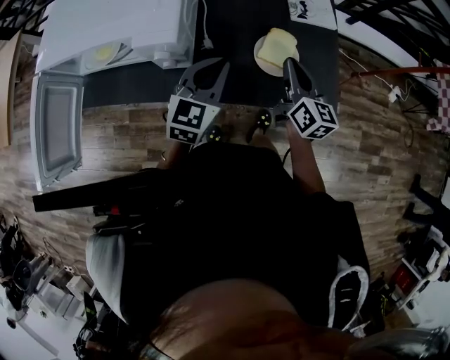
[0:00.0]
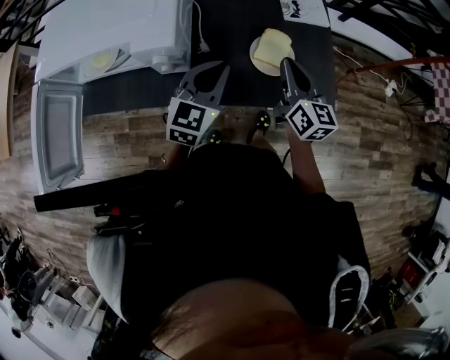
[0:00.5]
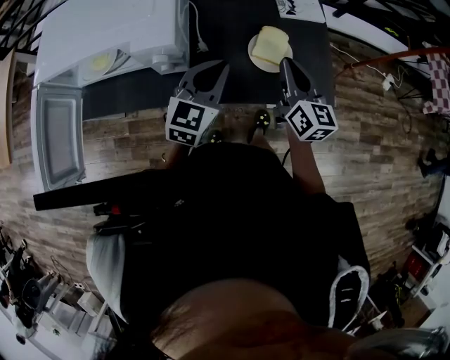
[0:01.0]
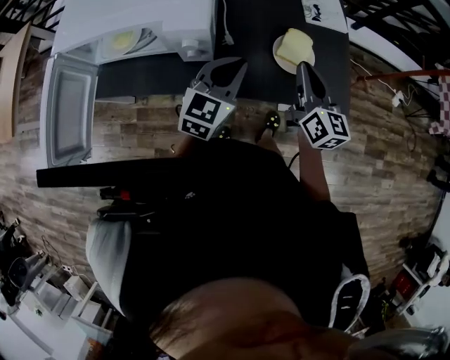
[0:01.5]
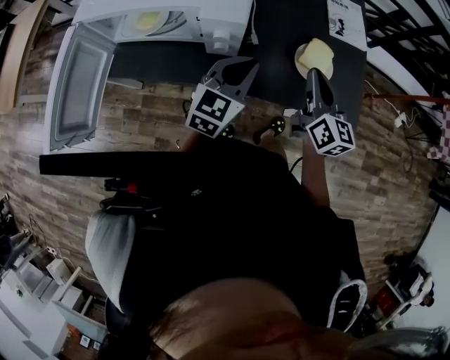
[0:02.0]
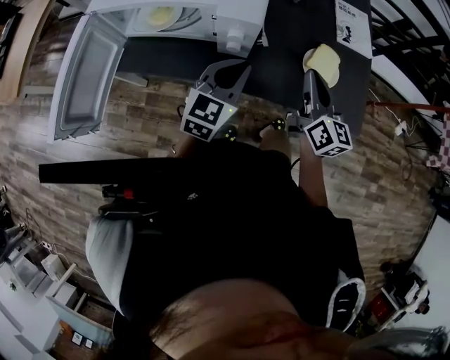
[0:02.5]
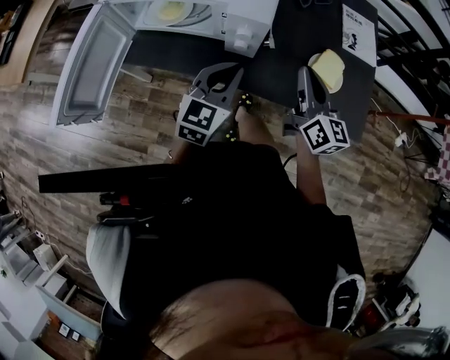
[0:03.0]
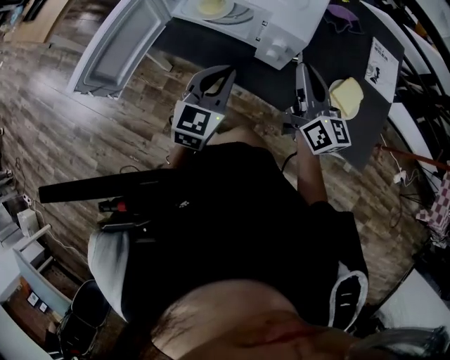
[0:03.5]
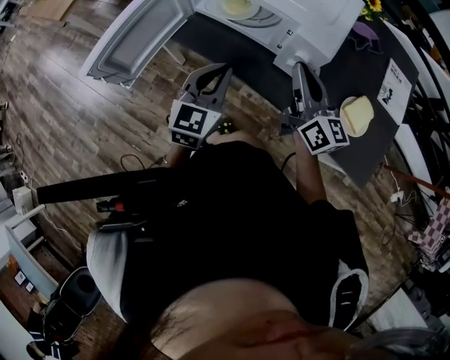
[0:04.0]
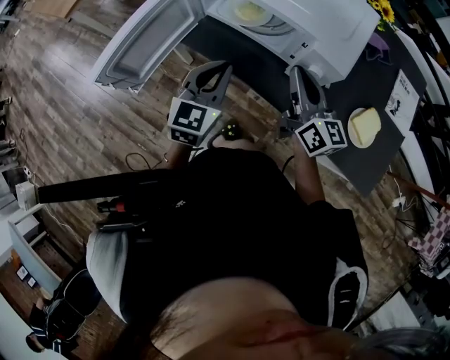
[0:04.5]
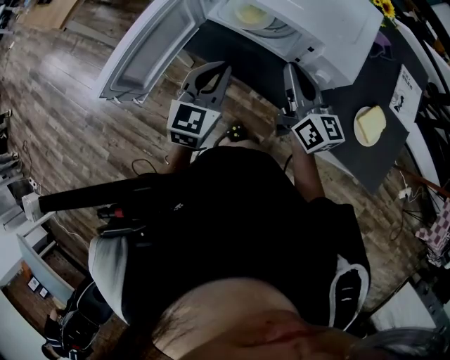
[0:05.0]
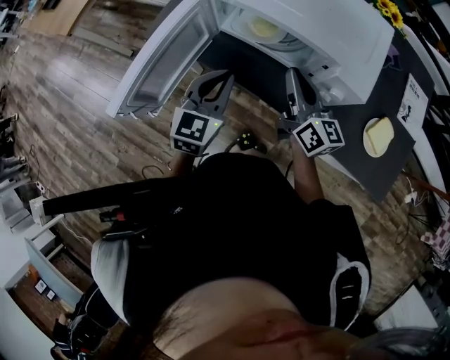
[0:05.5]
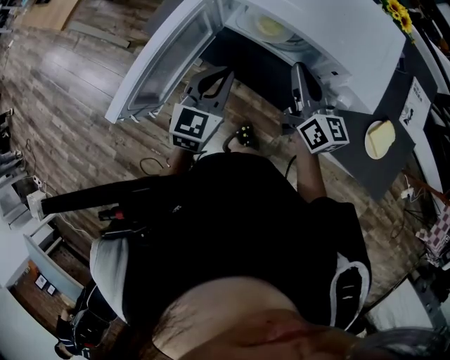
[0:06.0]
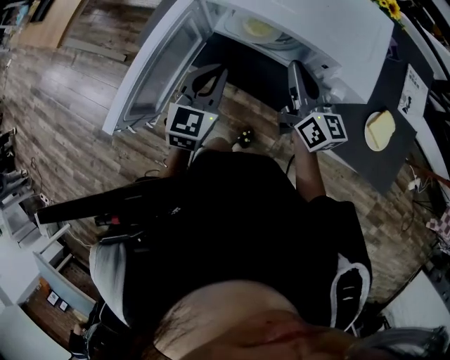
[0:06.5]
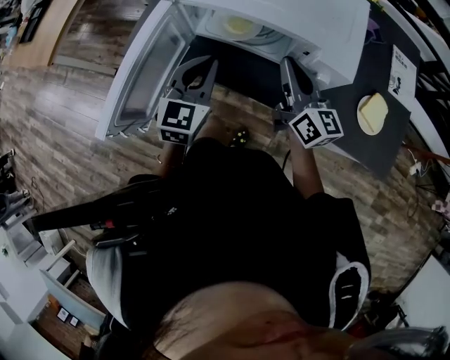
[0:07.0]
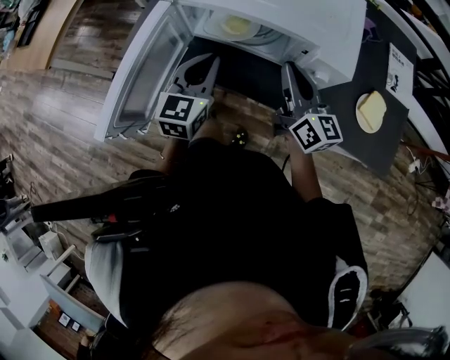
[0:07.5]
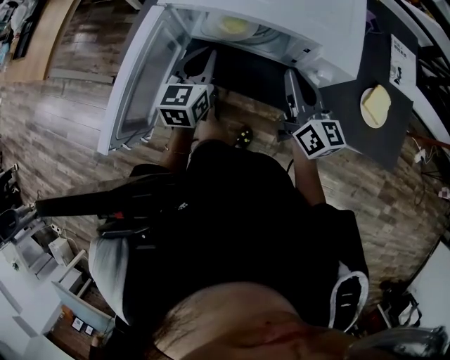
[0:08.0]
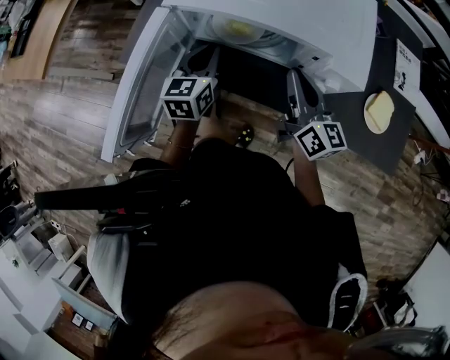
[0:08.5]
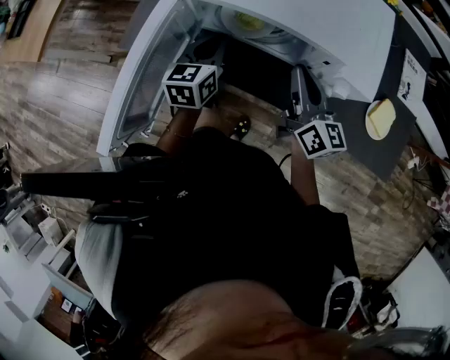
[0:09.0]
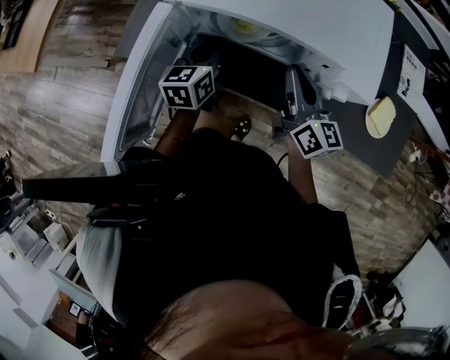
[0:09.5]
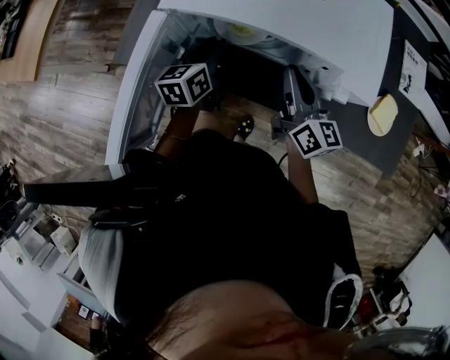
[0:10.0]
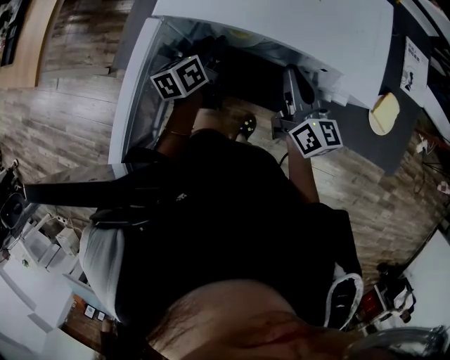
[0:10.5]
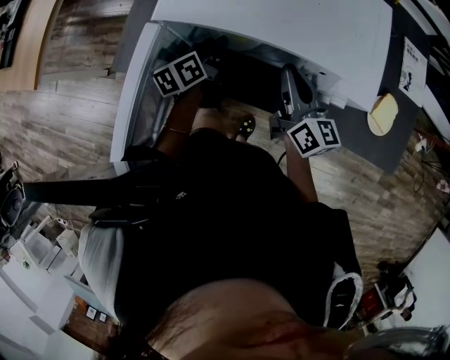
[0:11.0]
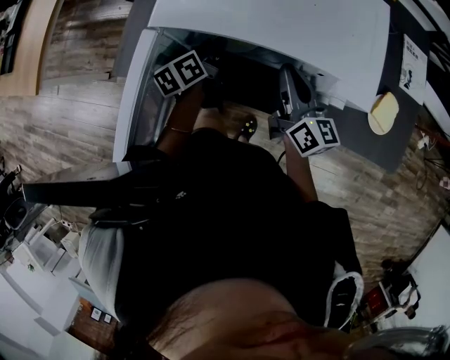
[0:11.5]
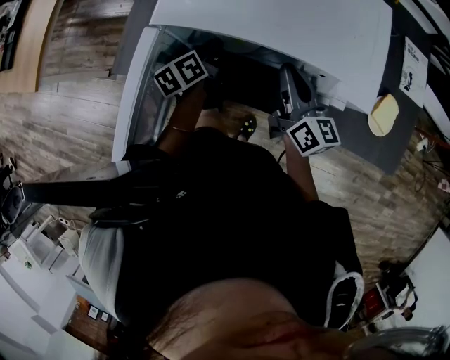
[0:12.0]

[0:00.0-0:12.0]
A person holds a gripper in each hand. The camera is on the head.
0:00.0 to 0:02.0: The right gripper heads to the left and backward, covering some 10 cm. Meanwhile the left gripper is displaced to the left by some 5 cm.
0:02.0 to 0:04.0: The right gripper ends up approximately 25 cm from where it was, and swivels some 30 degrees. The left gripper ends up about 25 cm from where it was, and changes its angle by some 30 degrees.
0:04.0 to 0:06.0: Both grippers move to the left and forward, approximately 15 cm.
0:06.0 to 0:08.0: The left gripper travels forward by about 5 cm. Meanwhile the right gripper heads to the right, covering about 5 cm.
0:08.0 to 0:10.0: The left gripper travels downward and forward by some 10 cm, and changes its angle by roughly 20 degrees. Meanwhile the right gripper moves roughly 5 cm.
0:10.0 to 0:12.0: The left gripper shifts by about 5 cm, and changes its angle by about 20 degrees.

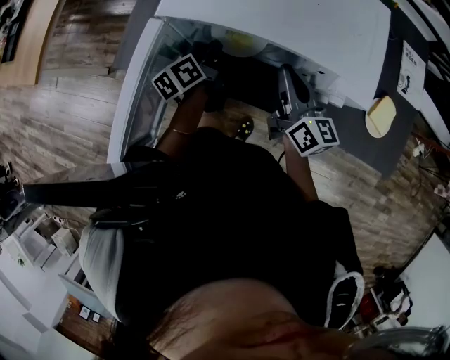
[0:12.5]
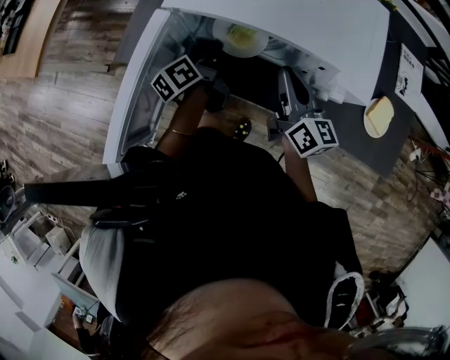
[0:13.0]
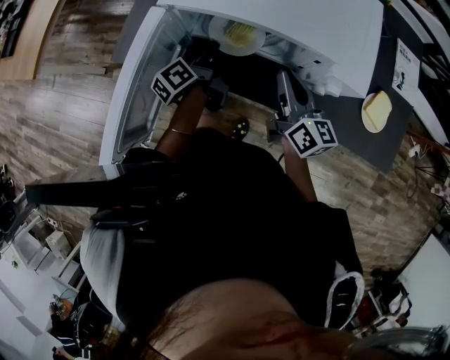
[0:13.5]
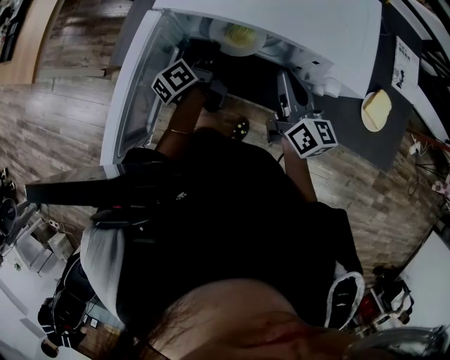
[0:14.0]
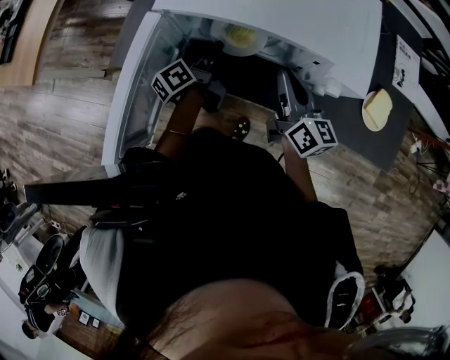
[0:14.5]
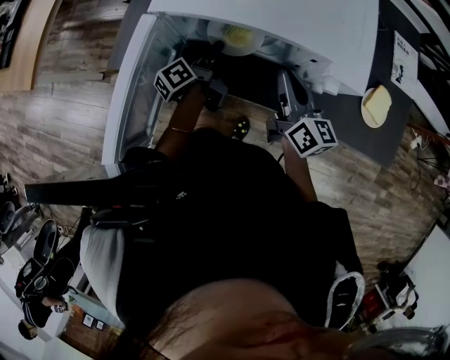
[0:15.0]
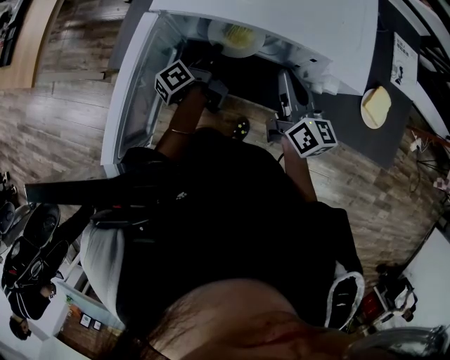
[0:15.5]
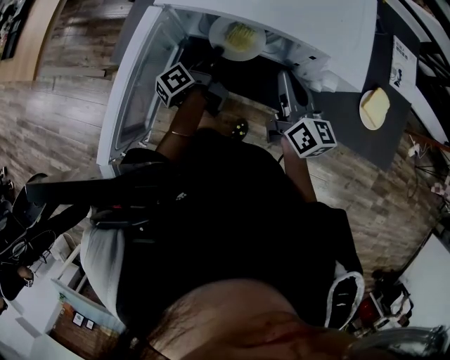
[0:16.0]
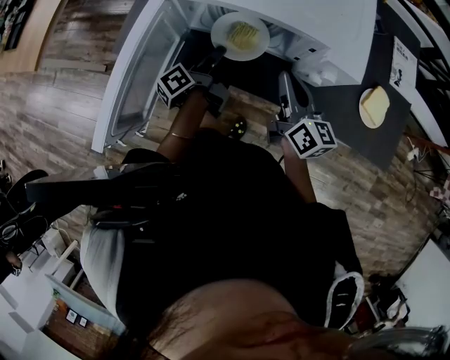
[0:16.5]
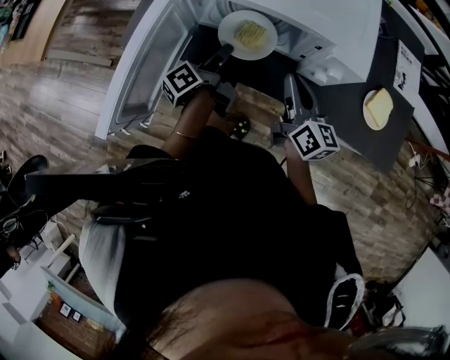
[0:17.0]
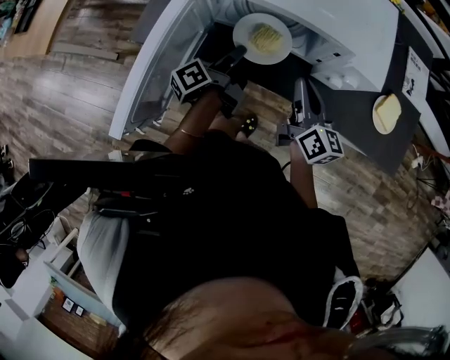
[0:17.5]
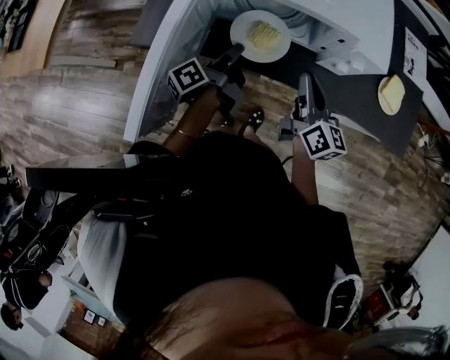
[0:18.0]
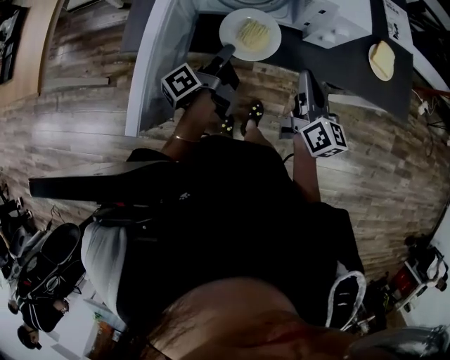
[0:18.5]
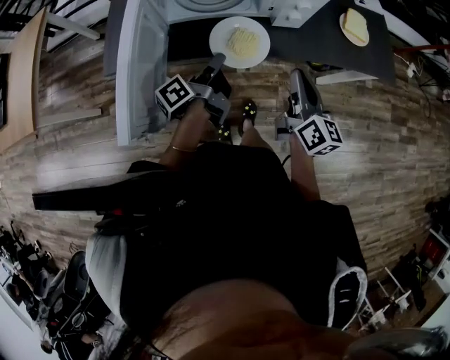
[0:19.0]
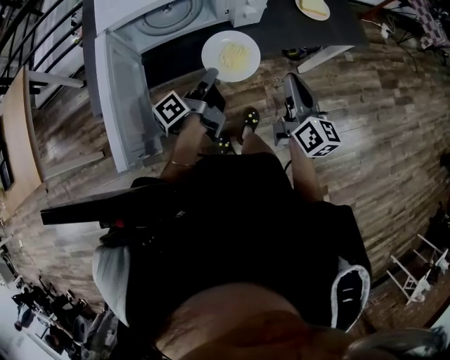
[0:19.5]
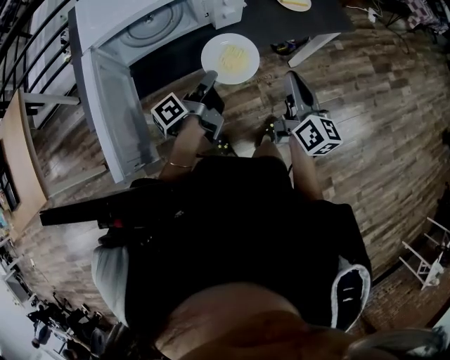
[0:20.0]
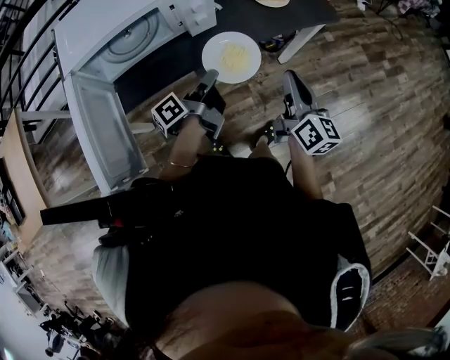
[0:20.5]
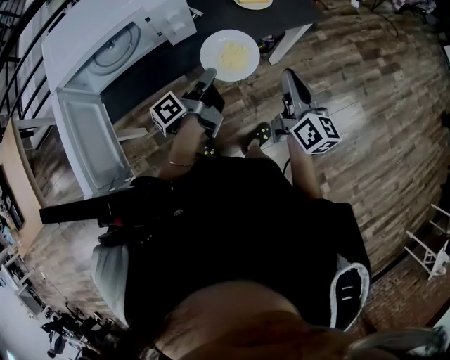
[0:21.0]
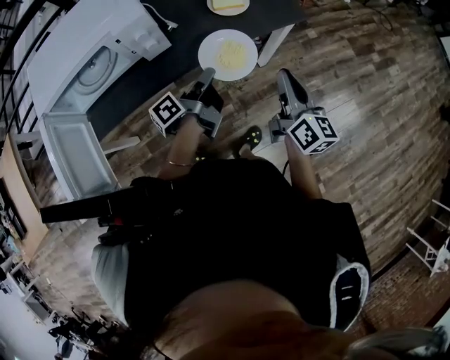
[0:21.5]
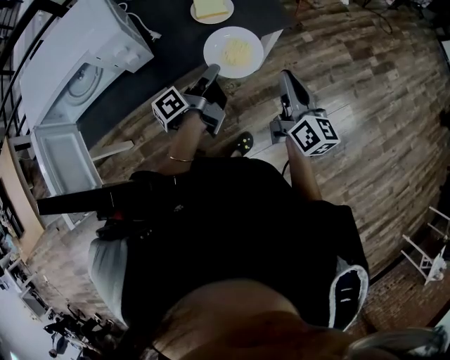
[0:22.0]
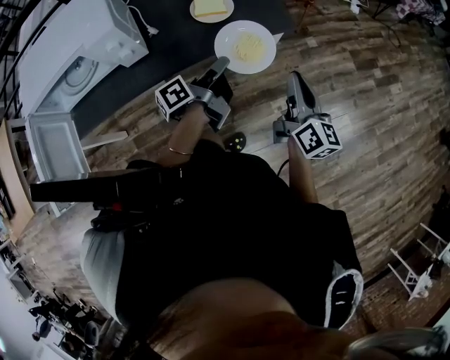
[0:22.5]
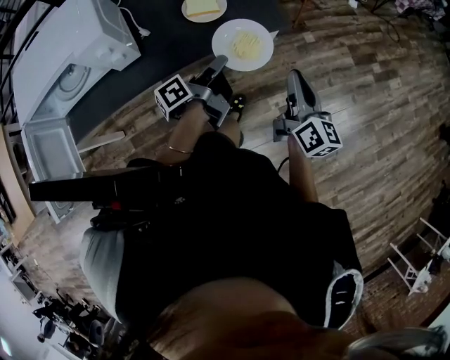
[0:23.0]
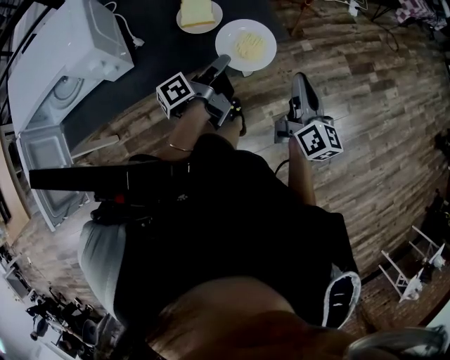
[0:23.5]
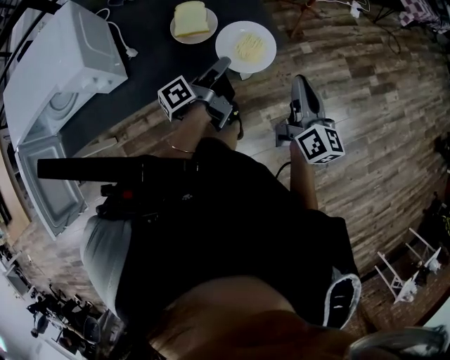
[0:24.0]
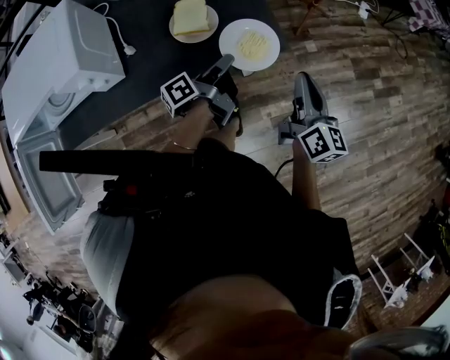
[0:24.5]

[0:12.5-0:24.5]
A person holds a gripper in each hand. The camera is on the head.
0:12.5 to 0:14.5: The grippers make only small movements.
0:14.5 to 0:16.5: The left gripper moves backward, about 5 cm, and closes.
0:16.5 to 0:18.5: The two grippers go approximately 10 cm backward.
0:18.5 to 0:20.5: The left gripper shifts by about 20 cm, and rotates some 30 degrees. Meanwhile the right gripper shifts by approximately 25 cm, and changes its angle by some 30 degrees.
0:20.5 to 0:22.5: The grippers both shift to the right and forward by approximately 30 cm.
0:22.5 to 0:24.5: The grippers both shift forward by roughly 10 cm.

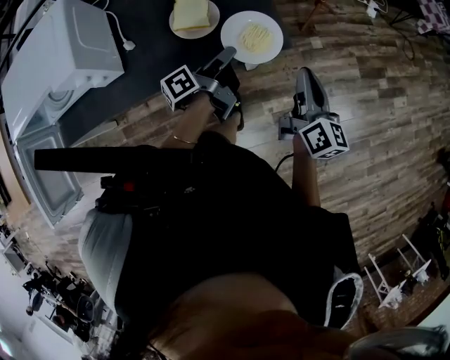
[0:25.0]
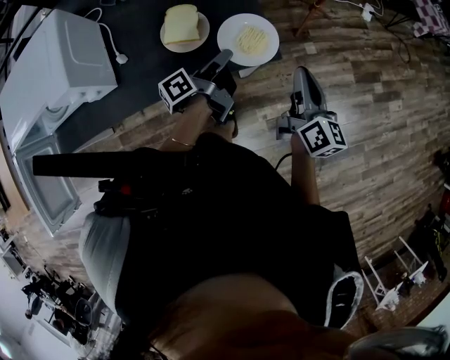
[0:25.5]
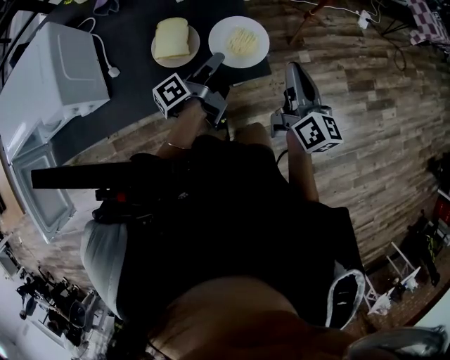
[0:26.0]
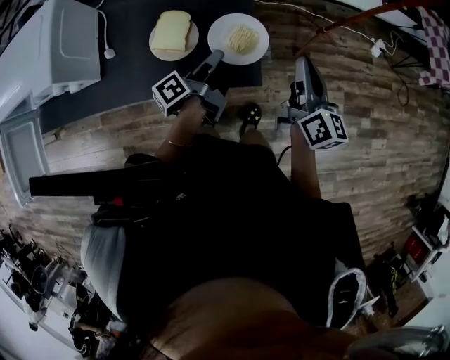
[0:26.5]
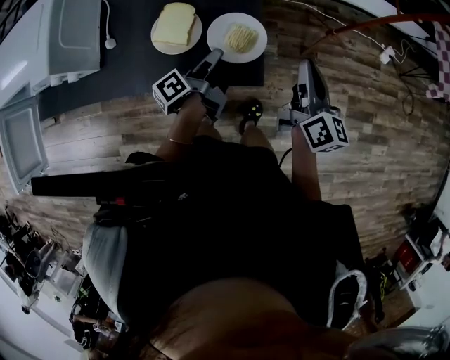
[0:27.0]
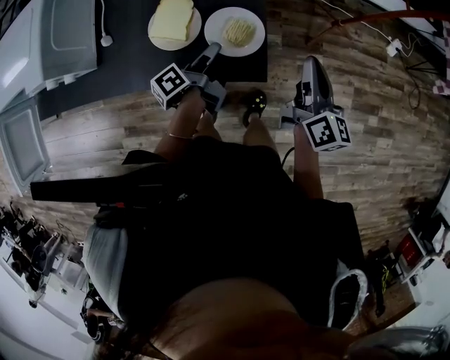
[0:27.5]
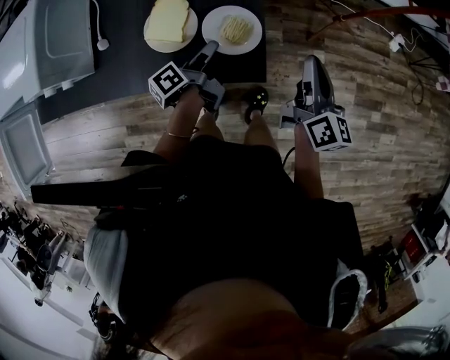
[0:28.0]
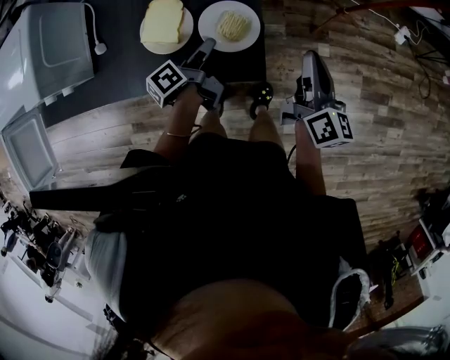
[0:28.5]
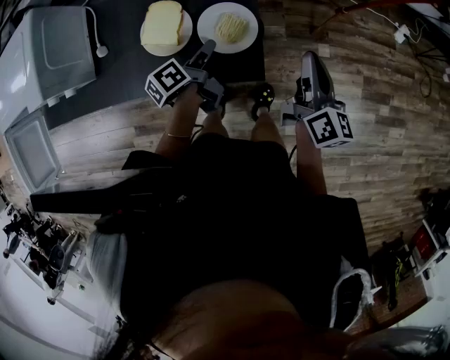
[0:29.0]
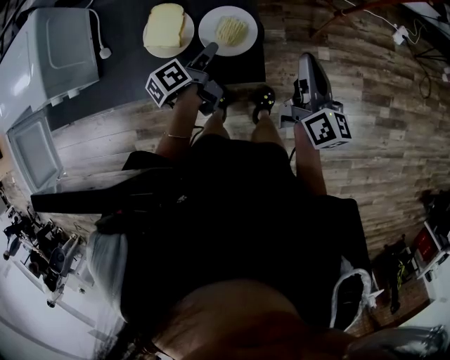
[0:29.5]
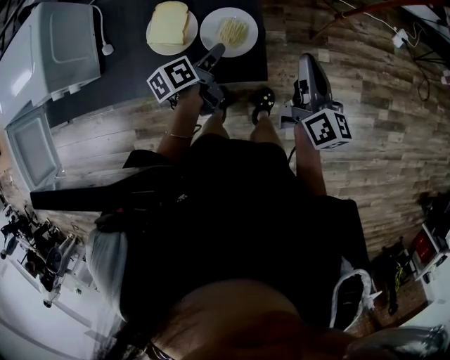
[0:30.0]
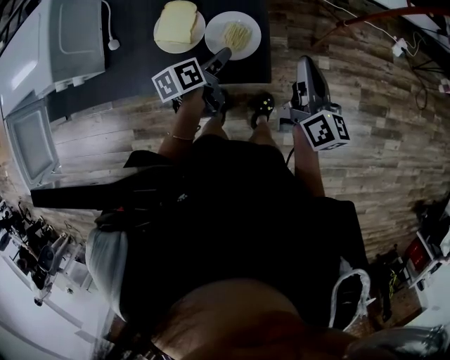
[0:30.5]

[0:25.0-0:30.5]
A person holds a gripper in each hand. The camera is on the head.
0:25.0 to 0:27.0: The left gripper travels forward by some 10 cm, and swivels some 20 degrees; the right gripper heads forward, covering approximately 20 cm.
0:27.0 to 0:28.5: There are only small adjustments of the grippers.
0:28.5 to 0:30.5: The left gripper swivels approximately 30 degrees, and opens.
